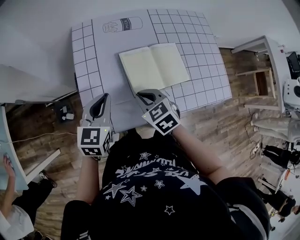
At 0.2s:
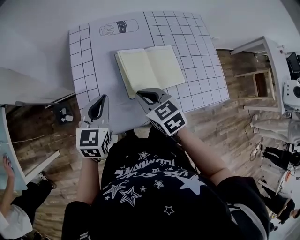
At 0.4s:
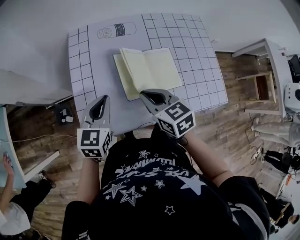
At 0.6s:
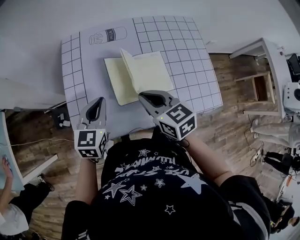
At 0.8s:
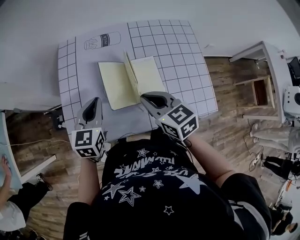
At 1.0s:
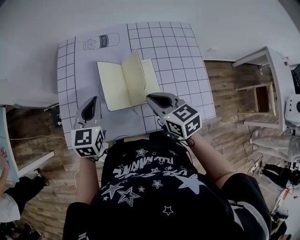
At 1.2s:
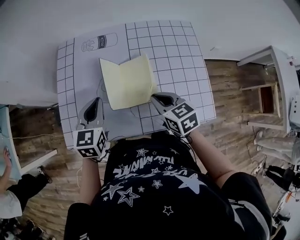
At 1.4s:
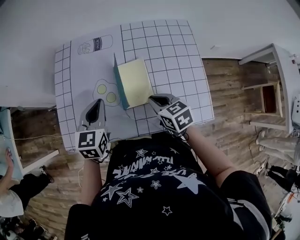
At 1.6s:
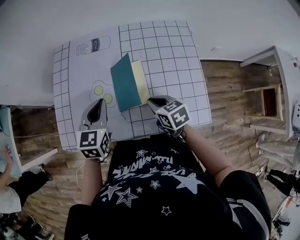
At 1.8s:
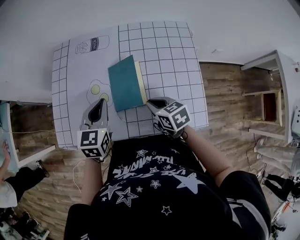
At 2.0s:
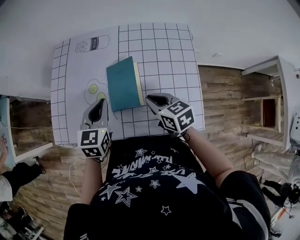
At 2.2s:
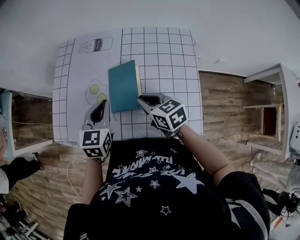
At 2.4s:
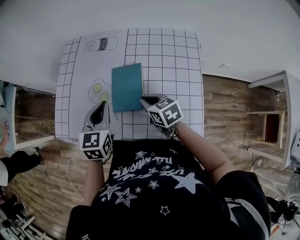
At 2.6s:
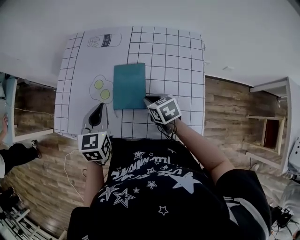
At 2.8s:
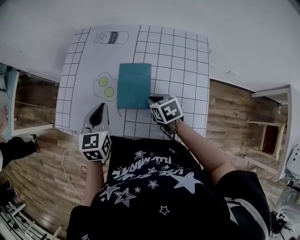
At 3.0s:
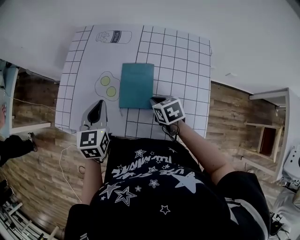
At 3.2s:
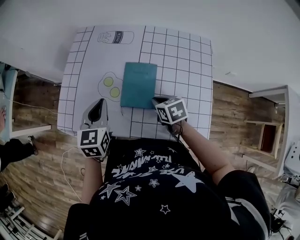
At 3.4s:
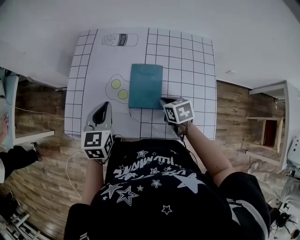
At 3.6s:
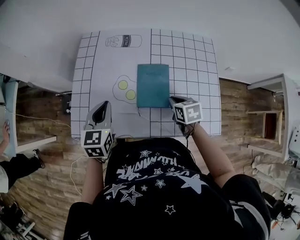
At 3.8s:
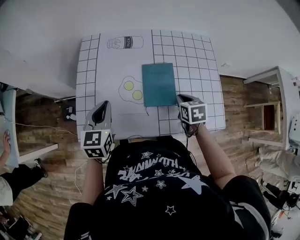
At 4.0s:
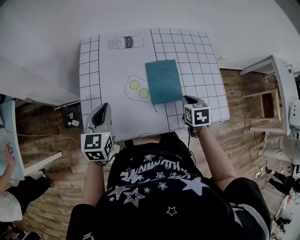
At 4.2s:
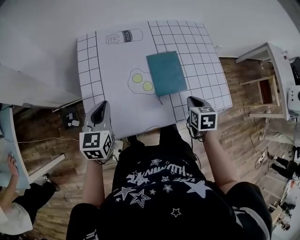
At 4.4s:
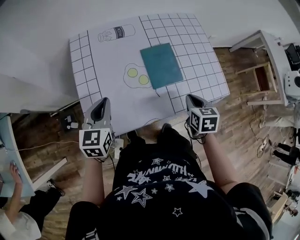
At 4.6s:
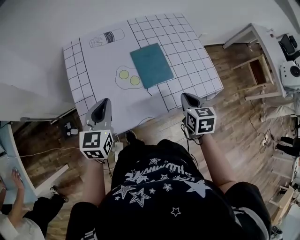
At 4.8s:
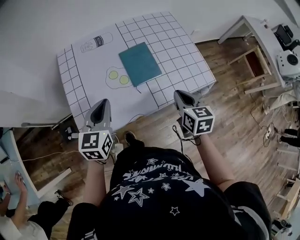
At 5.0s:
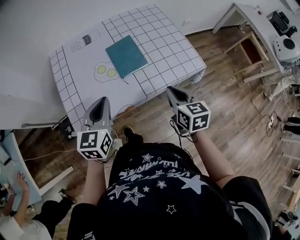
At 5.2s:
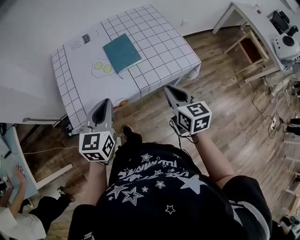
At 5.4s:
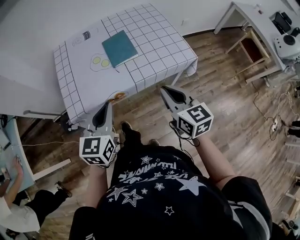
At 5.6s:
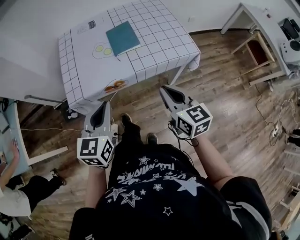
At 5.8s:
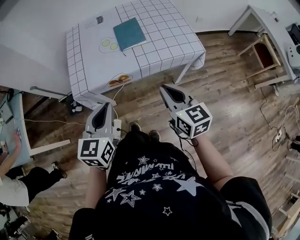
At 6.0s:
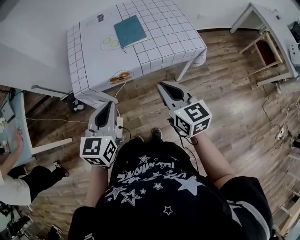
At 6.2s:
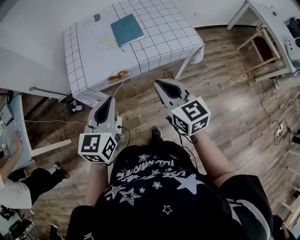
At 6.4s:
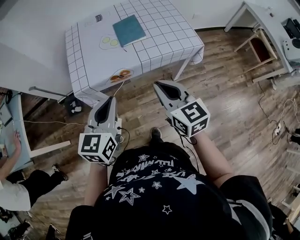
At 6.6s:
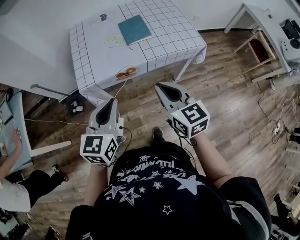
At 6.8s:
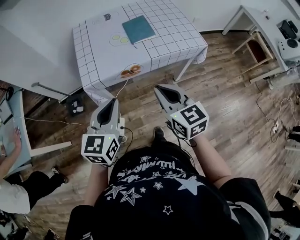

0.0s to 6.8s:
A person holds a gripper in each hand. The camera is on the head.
0.0s to 1.4s: The grippers both shift to the right by approximately 20 cm.
1.4s to 2.8s: The left gripper shifts by about 5 cm, while the right gripper moves downward, approximately 5 cm.
2.8s to 4.0s: The left gripper shifts by roughly 20 cm. Meanwhile the right gripper turns by some 40 degrees.
4.0s to 5.4s: The left gripper shifts about 25 cm backward and to the right; the right gripper is displaced backward and upward by approximately 30 cm, and angles its fingers upward, by about 40 degrees.
5.4s to 6.8s: The right gripper travels to the left and backward by roughly 15 cm, while the left gripper shifts approximately 15 cm backward and to the left.

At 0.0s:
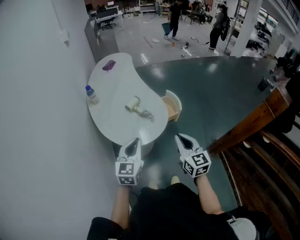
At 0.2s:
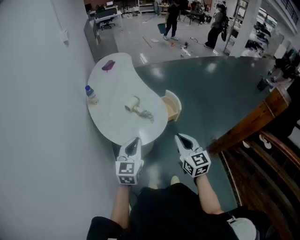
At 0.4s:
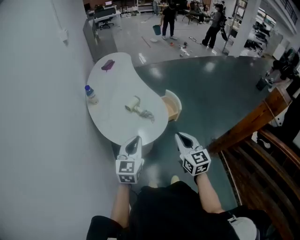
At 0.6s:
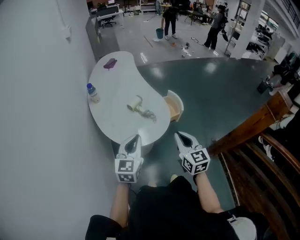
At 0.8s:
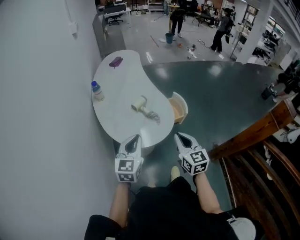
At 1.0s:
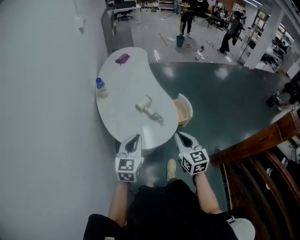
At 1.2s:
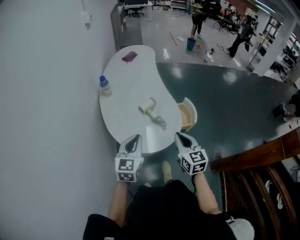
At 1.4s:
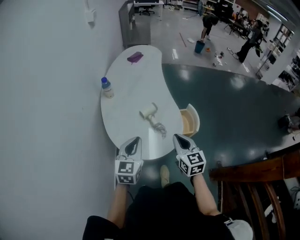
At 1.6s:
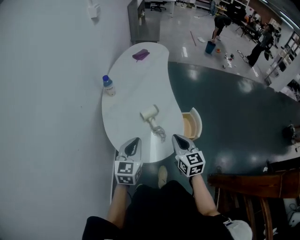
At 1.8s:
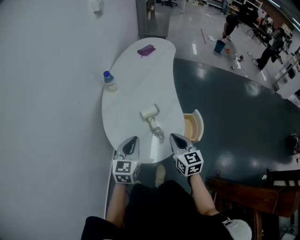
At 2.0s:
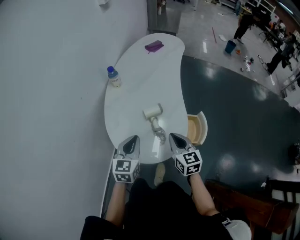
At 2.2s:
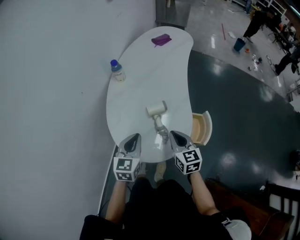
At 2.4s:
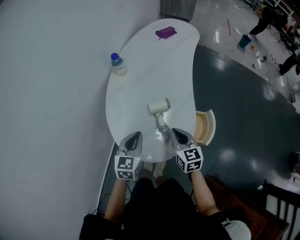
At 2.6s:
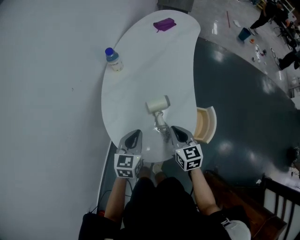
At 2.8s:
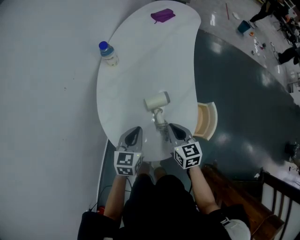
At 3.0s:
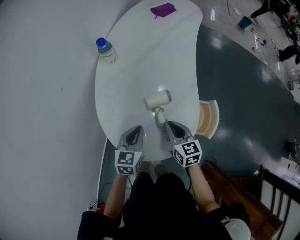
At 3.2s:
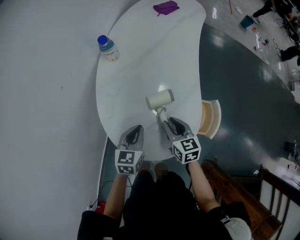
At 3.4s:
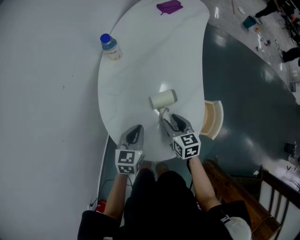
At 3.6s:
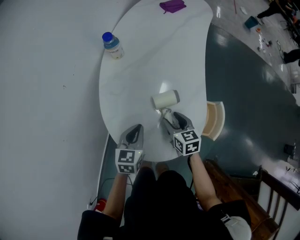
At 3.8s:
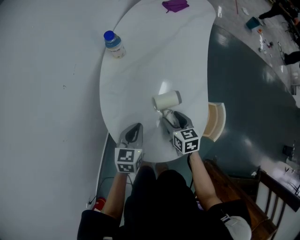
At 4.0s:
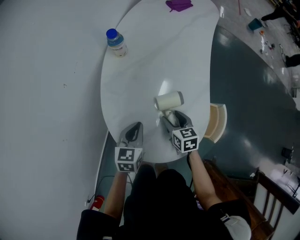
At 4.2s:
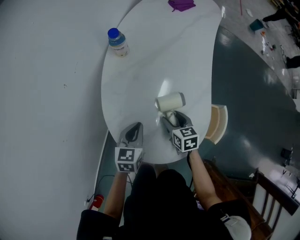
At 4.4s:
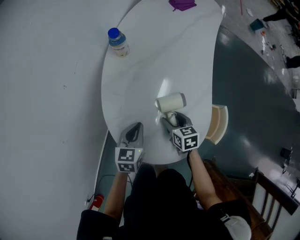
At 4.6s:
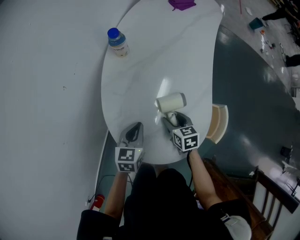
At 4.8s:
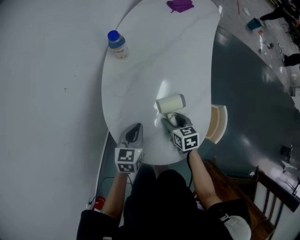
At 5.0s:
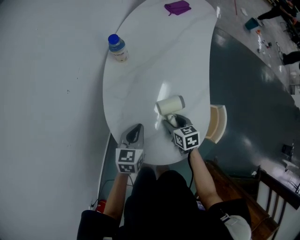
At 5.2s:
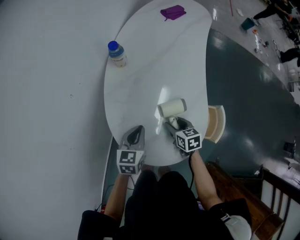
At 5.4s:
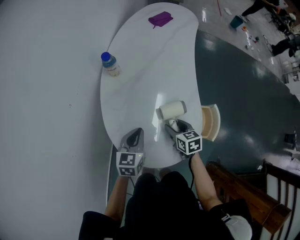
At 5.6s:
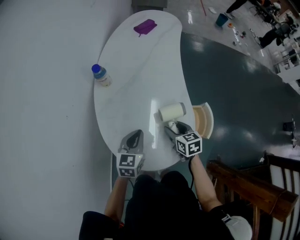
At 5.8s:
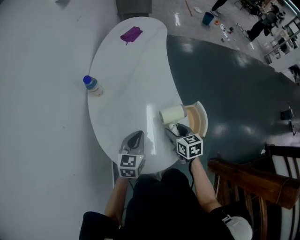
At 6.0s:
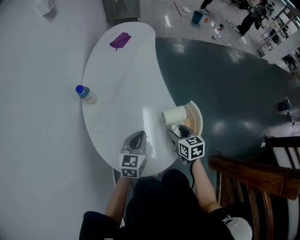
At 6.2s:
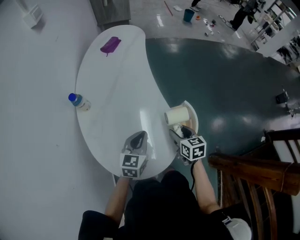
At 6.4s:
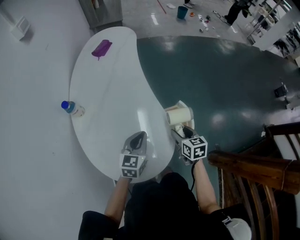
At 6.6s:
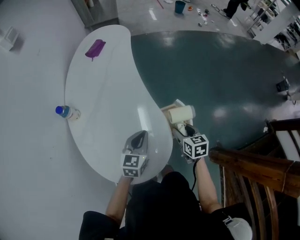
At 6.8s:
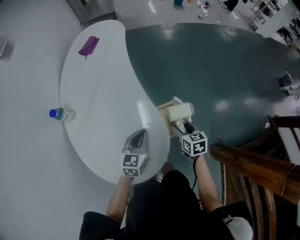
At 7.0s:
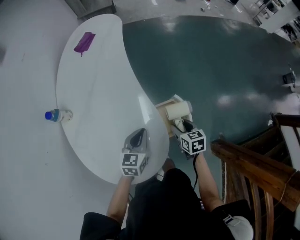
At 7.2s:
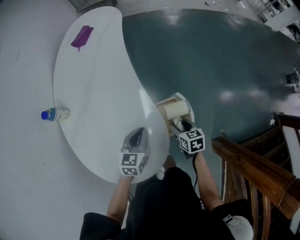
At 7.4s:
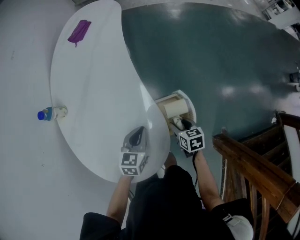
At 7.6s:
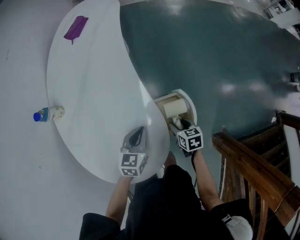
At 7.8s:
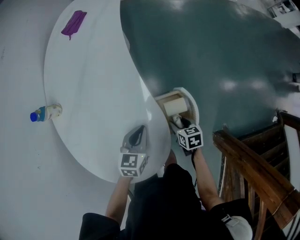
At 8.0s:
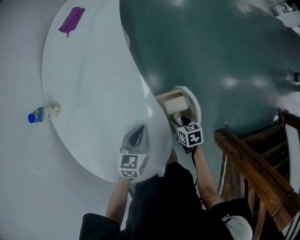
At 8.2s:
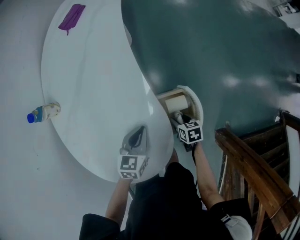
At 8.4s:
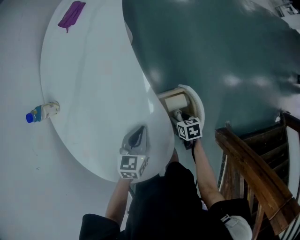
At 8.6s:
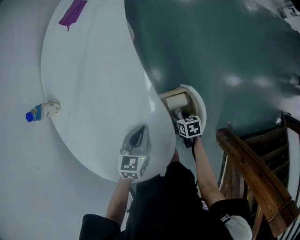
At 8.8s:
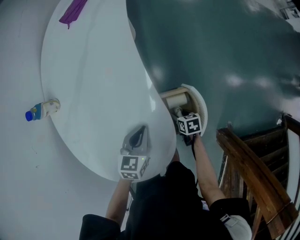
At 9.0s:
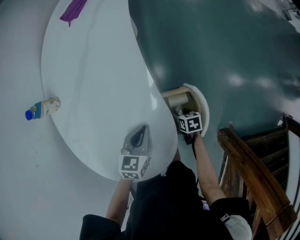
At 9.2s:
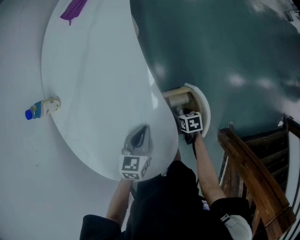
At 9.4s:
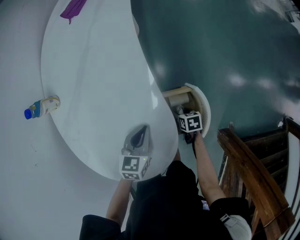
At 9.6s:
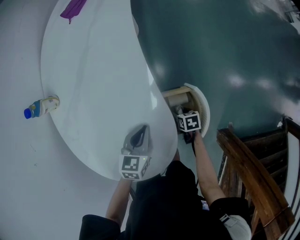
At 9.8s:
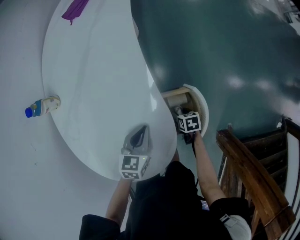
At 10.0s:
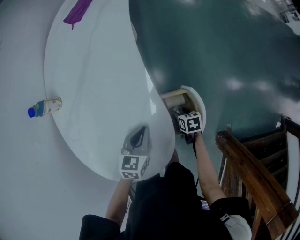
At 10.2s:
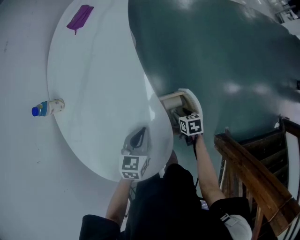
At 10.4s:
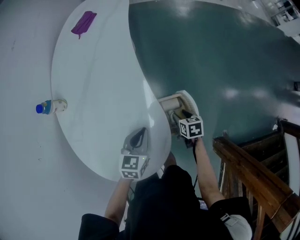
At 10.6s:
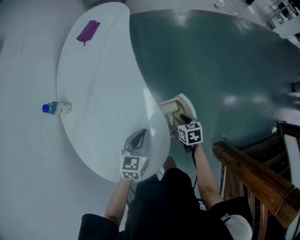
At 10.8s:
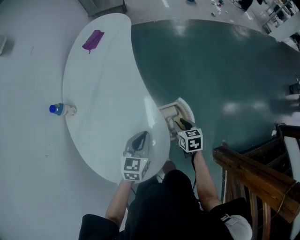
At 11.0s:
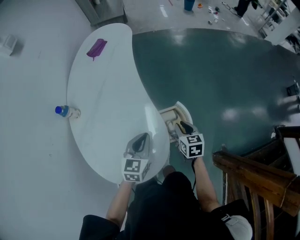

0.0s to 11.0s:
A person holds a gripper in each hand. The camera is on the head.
0.0s to 1.6s: Both grippers move forward, about 20 cm. The right gripper rotates approximately 20 degrees. Meanwhile the left gripper changes its angle by approximately 20 degrees.
1.6s to 3.2s: The grippers both shift downward and forward by approximately 20 cm. The left gripper changes its angle by some 20 degrees; the right gripper turns by about 20 degrees, and opens its fingers.
3.2s to 4.8s: The left gripper ends up about 5 cm from where it was. The right gripper shifts approximately 10 cm downward, and opens.
4.8s to 6.2s: The right gripper ends up about 25 cm from where it was, and turns by roughly 30 degrees. Meanwhile the left gripper changes place by about 20 cm, and rotates about 30 degrees.
6.2s to 7.8s: The right gripper shifts about 25 cm downward and to the right; the left gripper is displaced downward, to the right and forward by about 20 cm.
7.8s to 9.4s: The right gripper shifts approximately 15 cm downward.
9.4s to 11.0s: The left gripper is displaced upward by some 15 cm, while the right gripper travels upward by roughly 30 cm, rotates roughly 40 degrees, and closes.

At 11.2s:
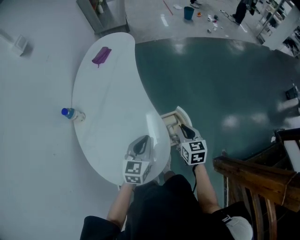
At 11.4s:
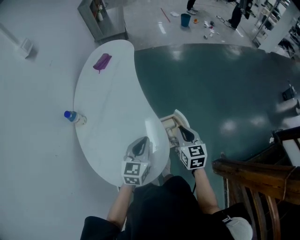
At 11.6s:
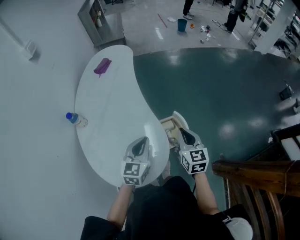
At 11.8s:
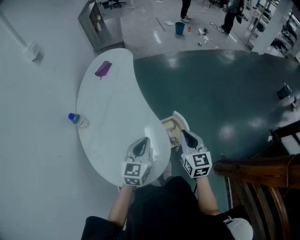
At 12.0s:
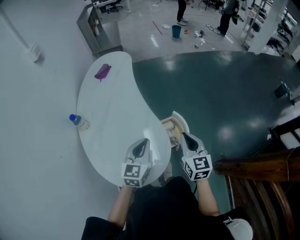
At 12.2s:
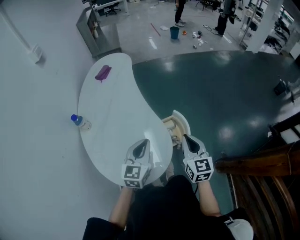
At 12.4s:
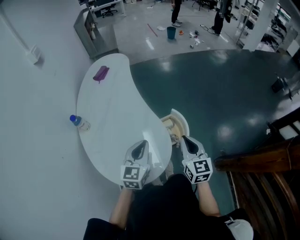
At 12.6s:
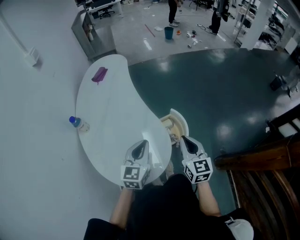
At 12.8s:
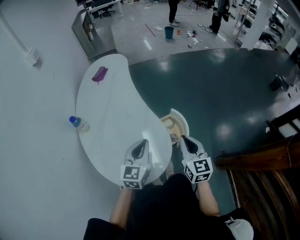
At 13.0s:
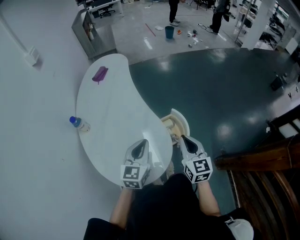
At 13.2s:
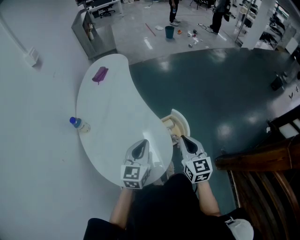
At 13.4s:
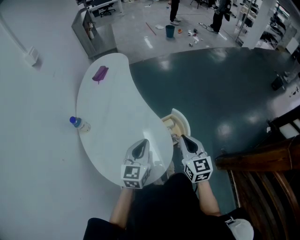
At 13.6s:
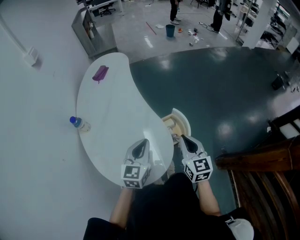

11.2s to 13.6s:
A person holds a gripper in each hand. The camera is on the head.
11.2s to 12.4s: The right gripper heads backward and upward, covering approximately 20 cm, and rotates about 20 degrees. Meanwhile the left gripper is displaced backward and upward by about 10 cm.
12.4s to 13.6s: The grippers make only small movements.

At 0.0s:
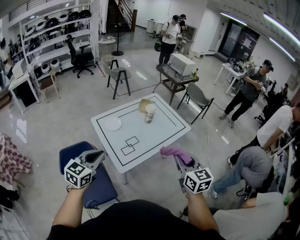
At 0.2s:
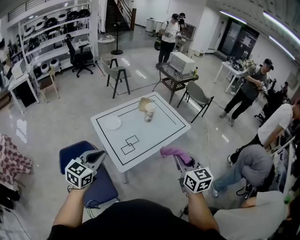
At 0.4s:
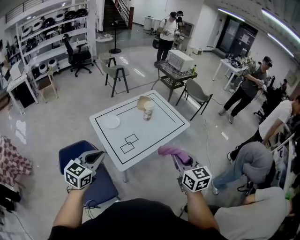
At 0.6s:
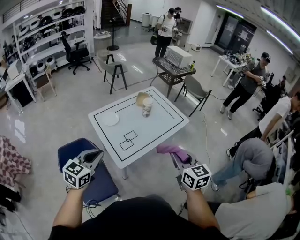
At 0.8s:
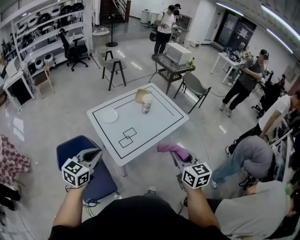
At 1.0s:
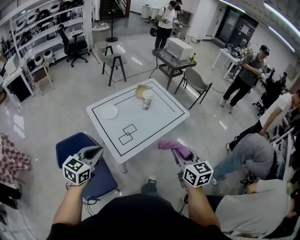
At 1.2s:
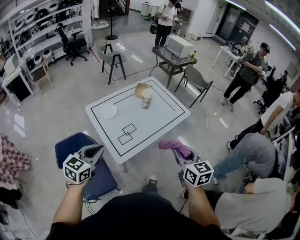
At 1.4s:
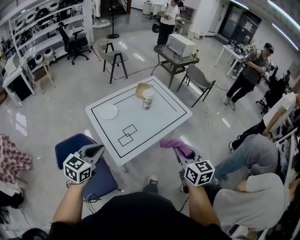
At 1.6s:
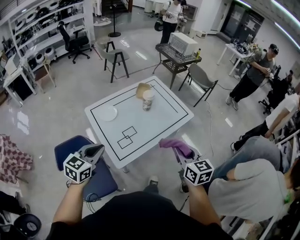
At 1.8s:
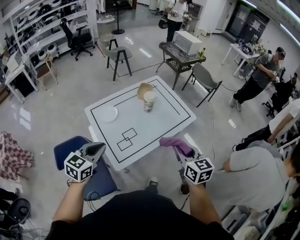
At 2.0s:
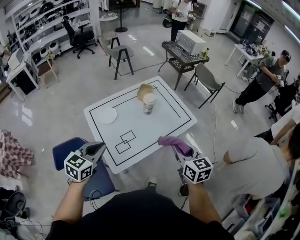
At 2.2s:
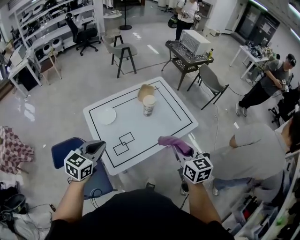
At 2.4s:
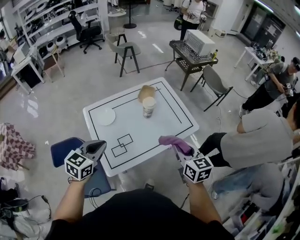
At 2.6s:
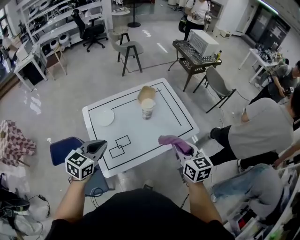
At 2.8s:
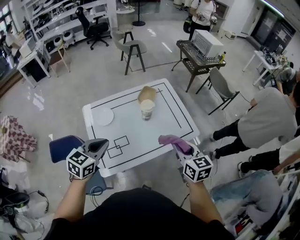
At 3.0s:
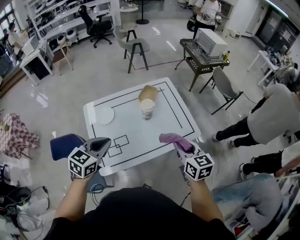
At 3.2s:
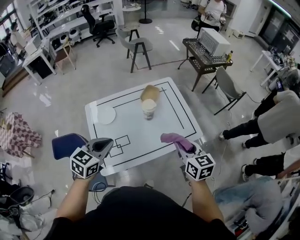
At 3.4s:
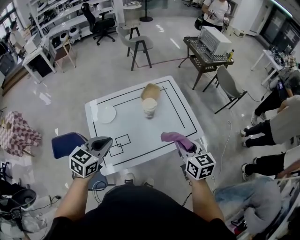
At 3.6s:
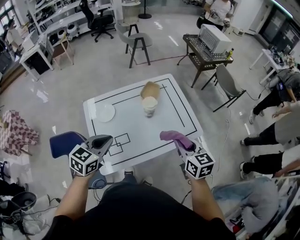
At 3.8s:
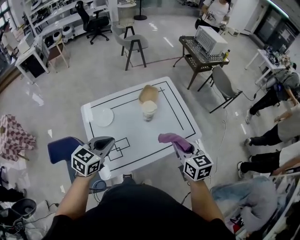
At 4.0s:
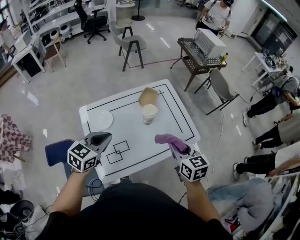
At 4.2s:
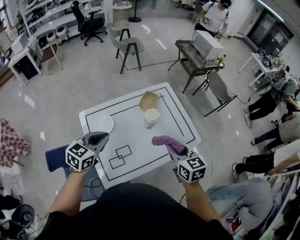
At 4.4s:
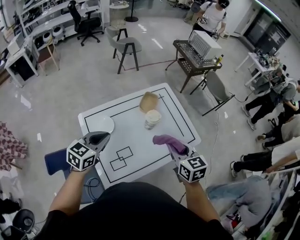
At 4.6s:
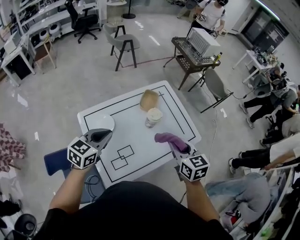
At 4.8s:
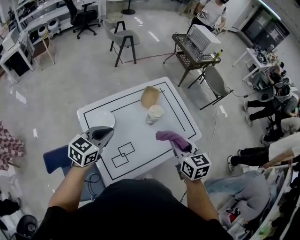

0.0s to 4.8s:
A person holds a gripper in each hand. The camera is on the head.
0.0s to 1.6s: Both grippers travel together forward and downward, approximately 10 cm.
1.6s to 3.2s: The two grippers go approximately 30 cm forward and to the right.
3.2s to 4.8s: The grippers both shift to the left and forward by some 20 cm.
